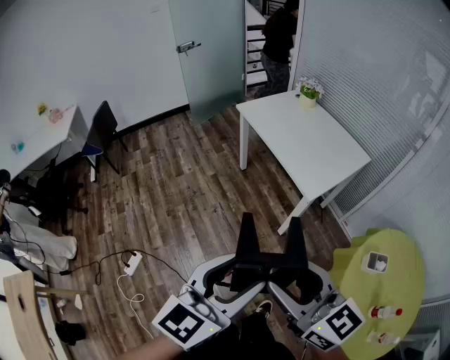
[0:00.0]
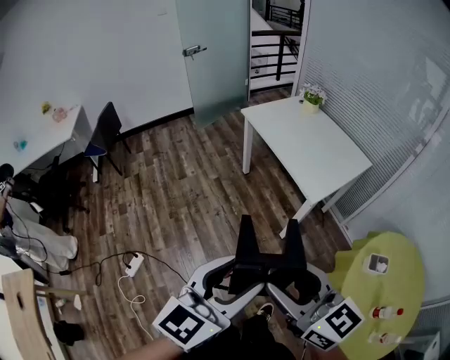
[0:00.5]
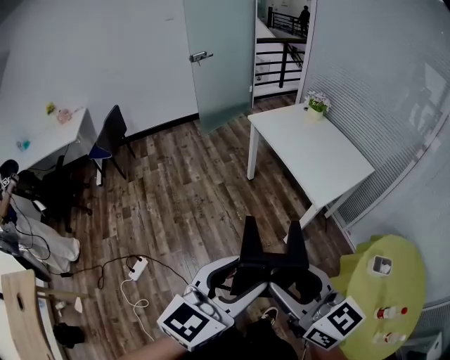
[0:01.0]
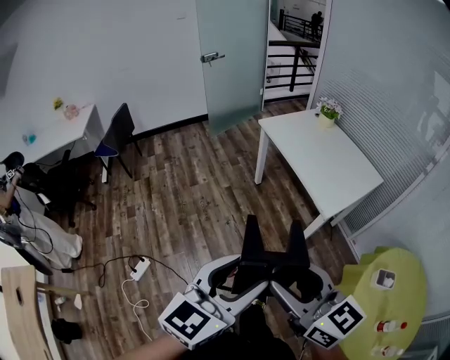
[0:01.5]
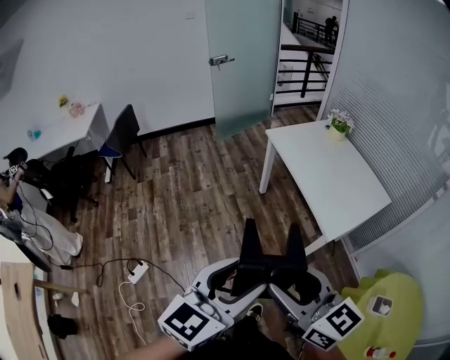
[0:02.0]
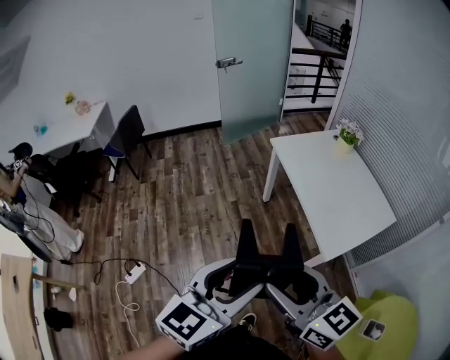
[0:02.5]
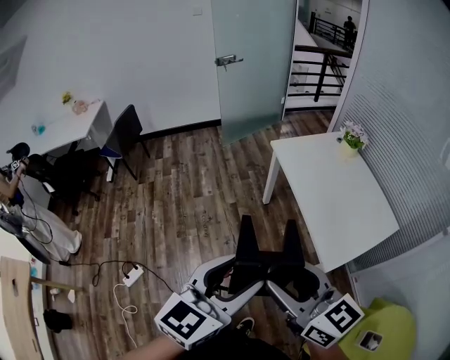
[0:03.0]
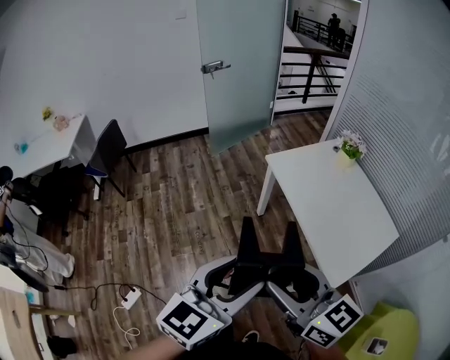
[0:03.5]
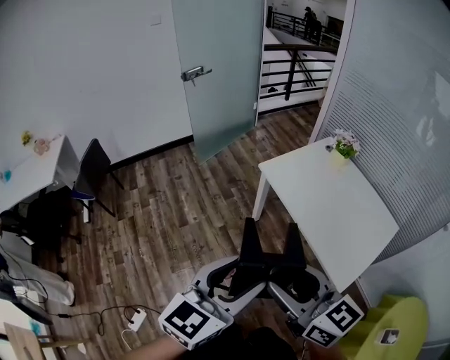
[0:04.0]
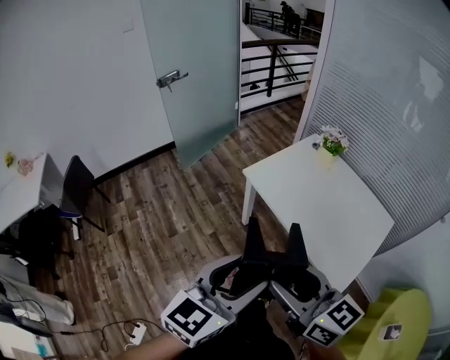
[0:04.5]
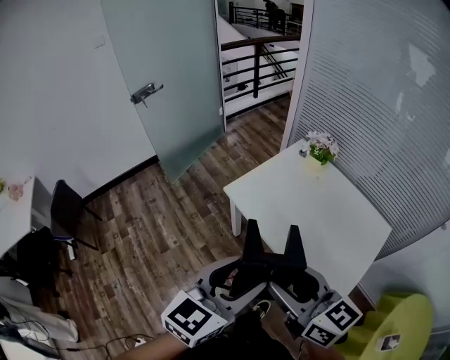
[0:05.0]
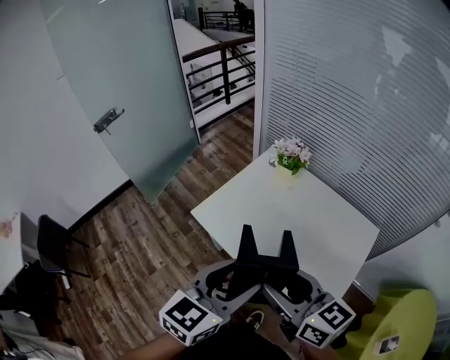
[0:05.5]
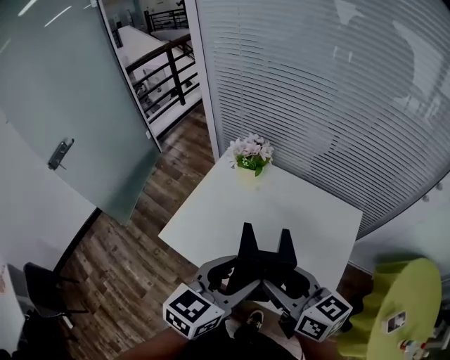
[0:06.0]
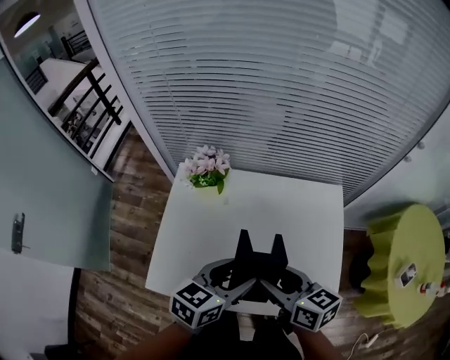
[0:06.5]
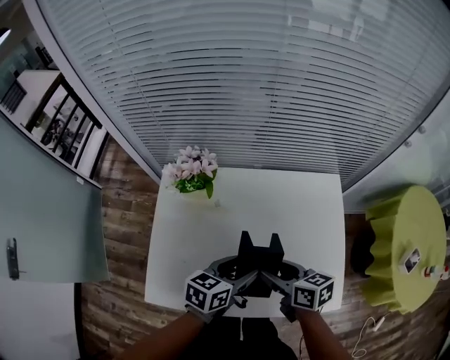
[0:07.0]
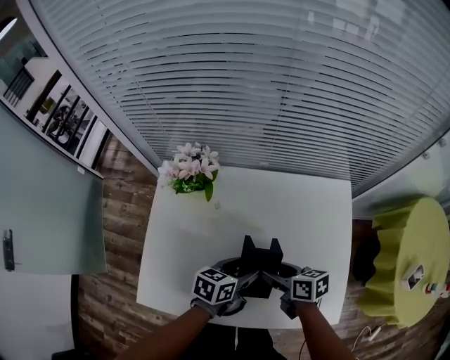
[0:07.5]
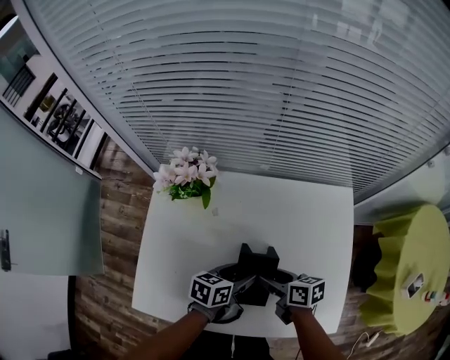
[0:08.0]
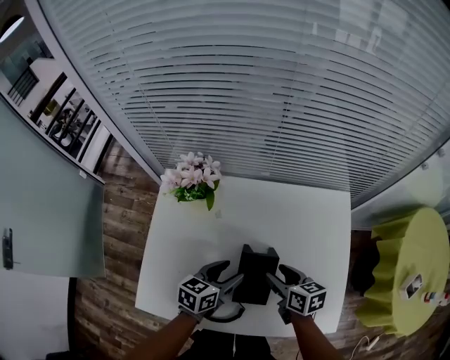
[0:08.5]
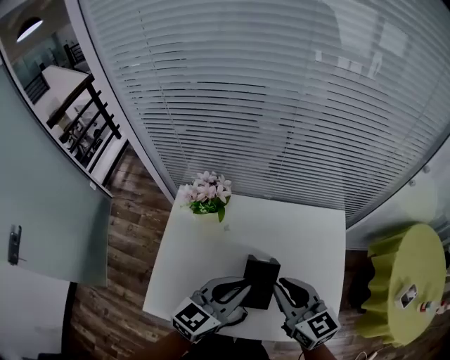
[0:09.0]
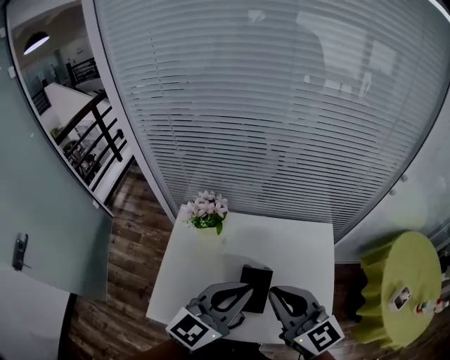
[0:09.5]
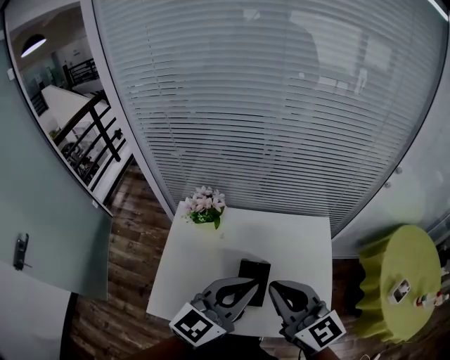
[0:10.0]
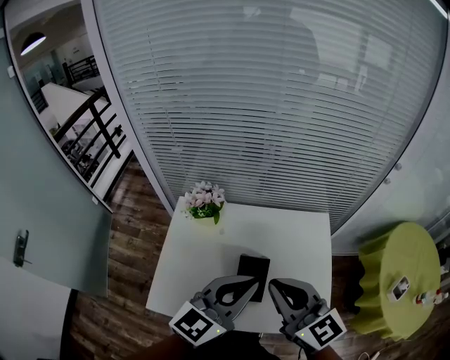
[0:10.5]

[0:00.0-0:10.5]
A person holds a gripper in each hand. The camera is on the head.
0:00.0 to 0:02.0: The grippers both shift forward and to the left by roughly 10 cm.
0:02.0 to 0:04.0: The two grippers go roughly 35 cm forward.
0:04.0 to 0:06.5: Both grippers are carried some 50 cm. The right gripper swivels about 60 degrees. The left gripper rotates some 60 degrees.
0:06.5 to 0:08.5: Both grippers travel together downward and forward, about 20 cm.
0:08.5 to 0:10.5: Both grippers move upward, some 35 cm. The right gripper tips its fingers upward by approximately 30 degrees, and closes its fingers. The left gripper turns by some 40 degrees, and closes its fingers.

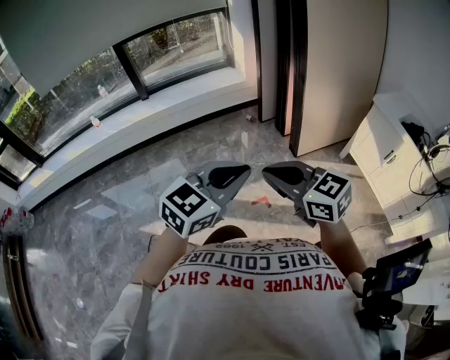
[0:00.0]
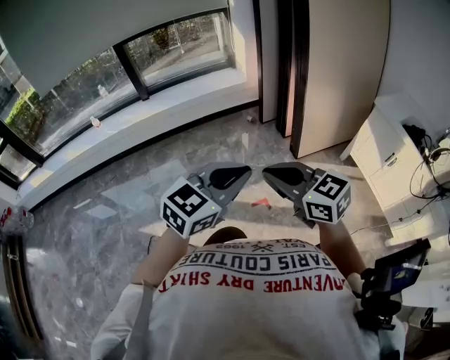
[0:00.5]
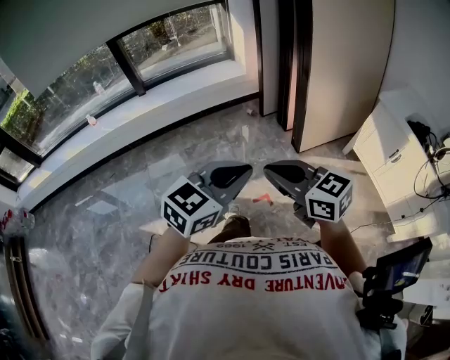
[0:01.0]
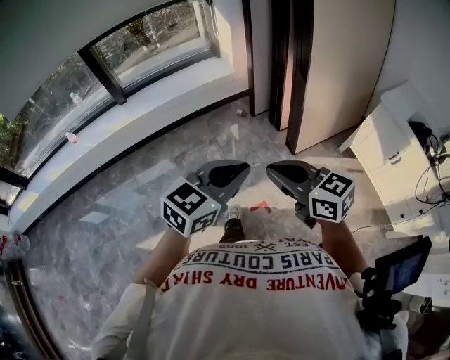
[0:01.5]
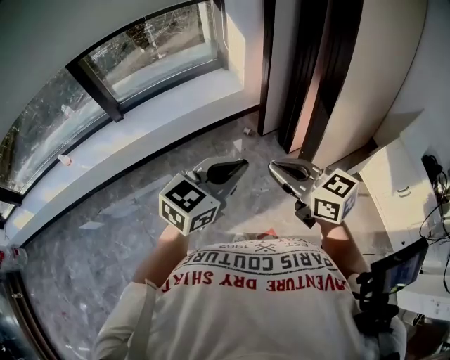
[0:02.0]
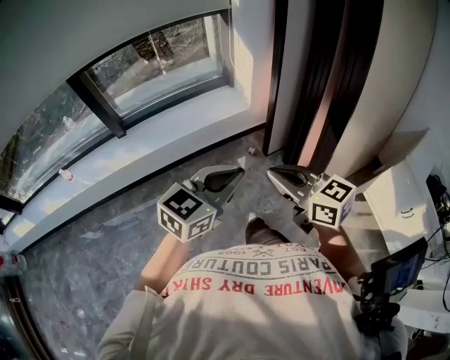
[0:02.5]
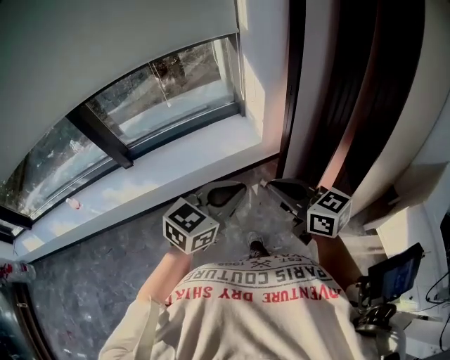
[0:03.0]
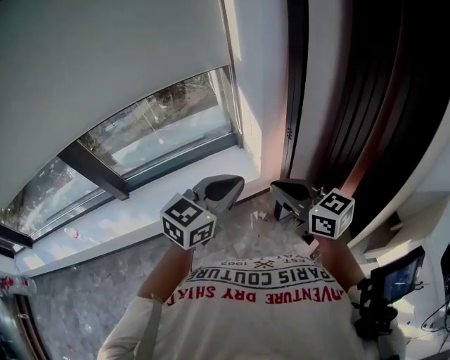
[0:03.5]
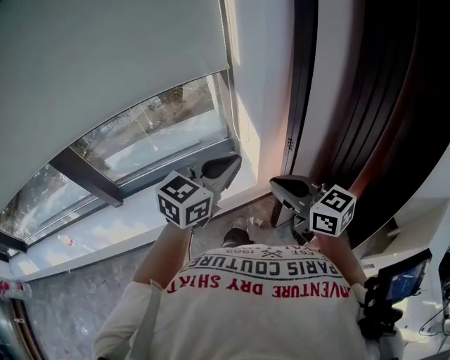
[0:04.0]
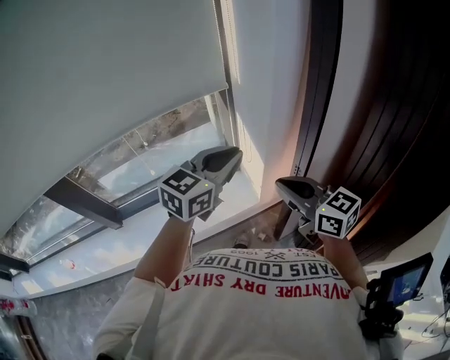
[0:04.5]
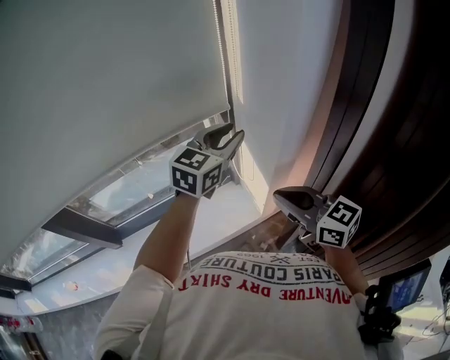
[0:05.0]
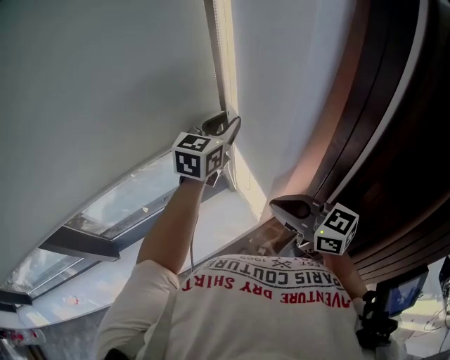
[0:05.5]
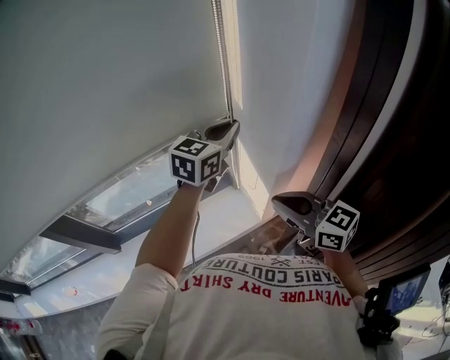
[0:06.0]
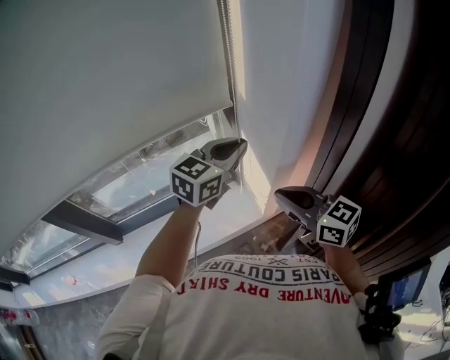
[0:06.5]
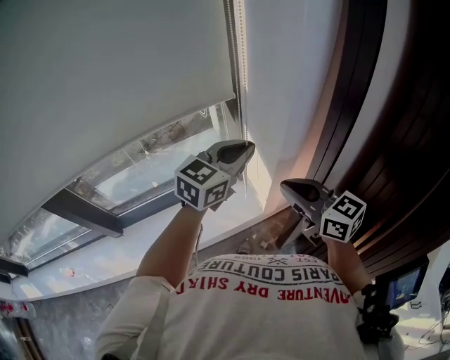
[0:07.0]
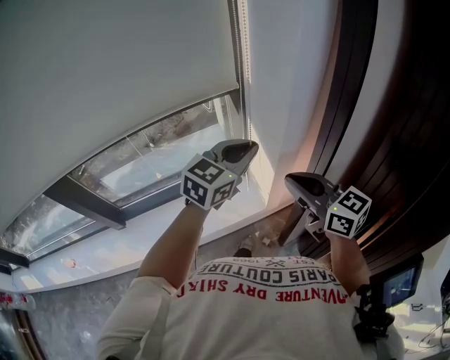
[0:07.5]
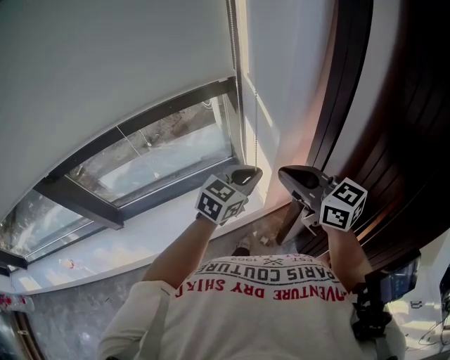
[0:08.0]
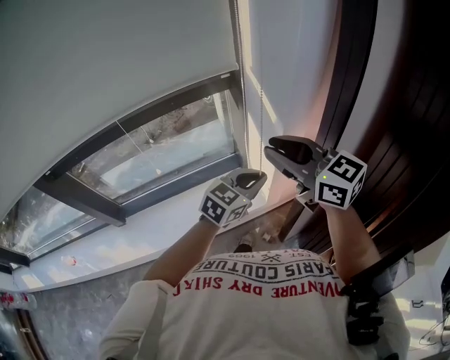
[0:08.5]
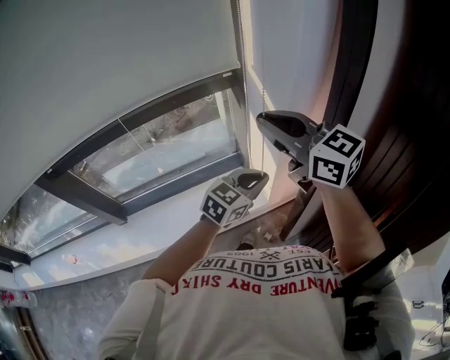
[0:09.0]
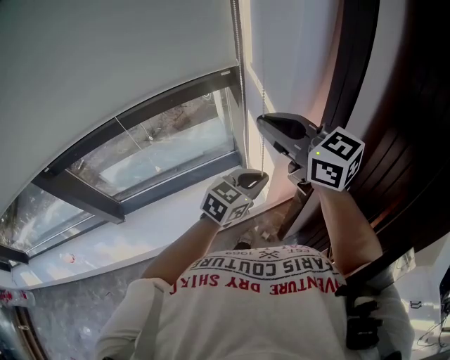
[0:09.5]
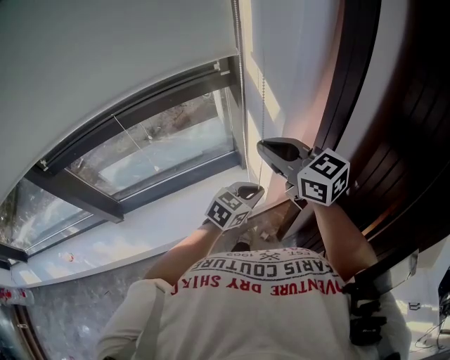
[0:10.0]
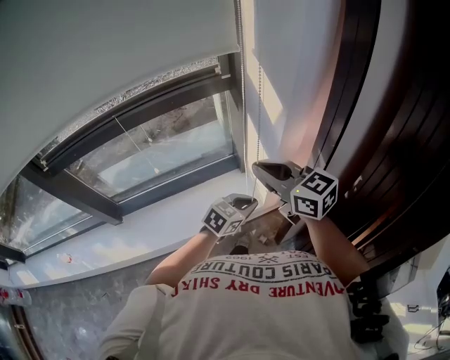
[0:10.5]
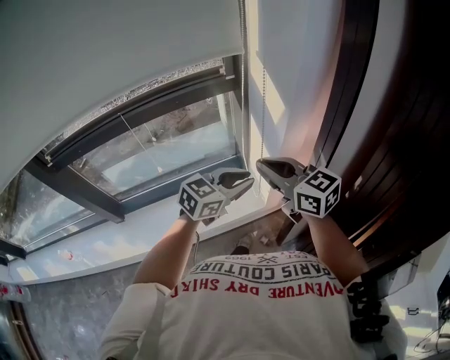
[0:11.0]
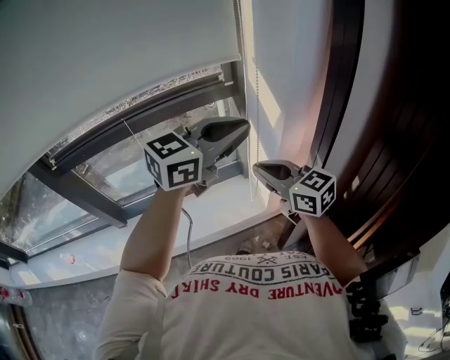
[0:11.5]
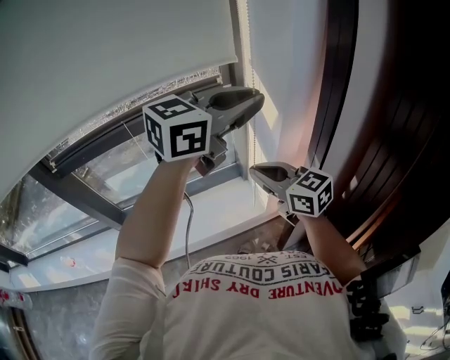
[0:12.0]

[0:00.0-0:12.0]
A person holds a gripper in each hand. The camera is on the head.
0:00.0 to 0:02.0: The grippers both shift forward by approximately 40 cm.
0:02.0 to 0:04.0: The pair of grippers is taken forward, approximately 50 cm.
0:04.0 to 0:06.0: The left gripper shifts some 30 cm forward, and opens, then closes again, while the right gripper heads forward, covering approximately 15 cm.
0:06.0 to 0:08.0: The left gripper is displaced backward and downward by approximately 20 cm.
0:08.0 to 0:10.0: The right gripper shifts some 5 cm to the left, and moves roughly 10 cm upward and comes back. The left gripper goes approximately 10 cm downward.
0:10.0 to 0:12.0: The left gripper shifts some 35 cm upward, and turns by some 30 degrees; the right gripper changes place by about 5 cm.

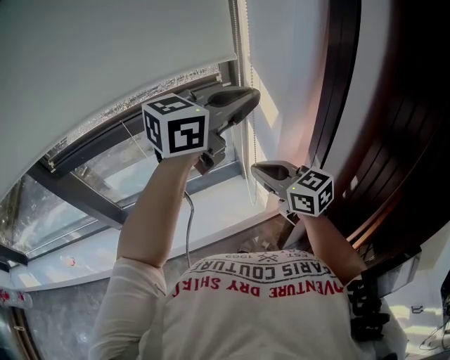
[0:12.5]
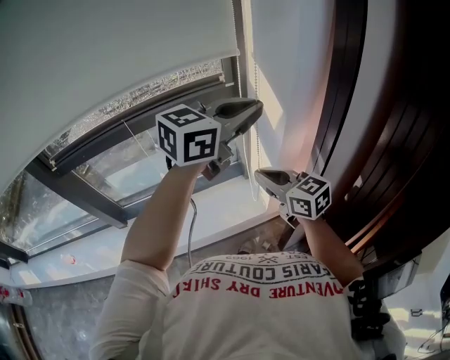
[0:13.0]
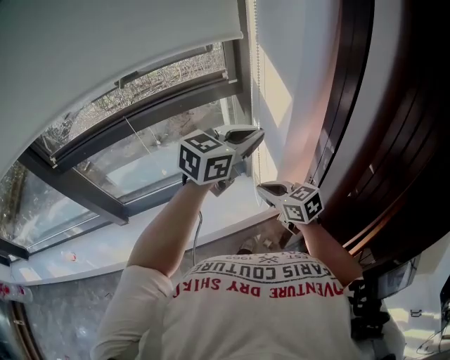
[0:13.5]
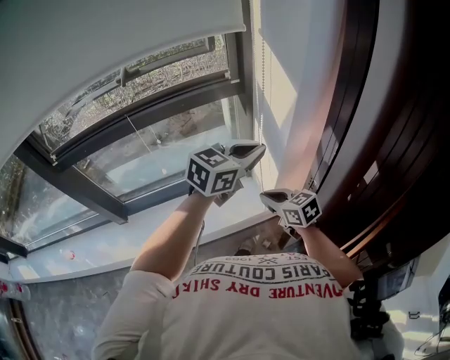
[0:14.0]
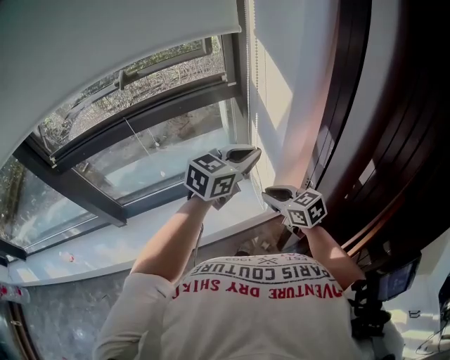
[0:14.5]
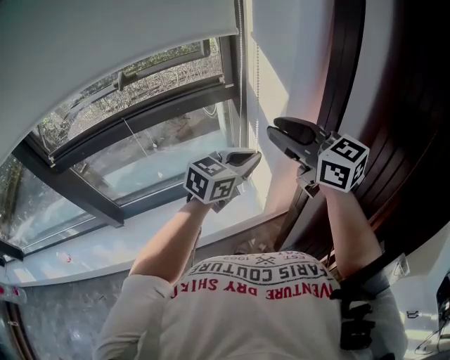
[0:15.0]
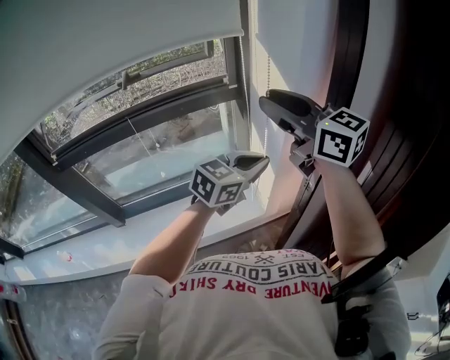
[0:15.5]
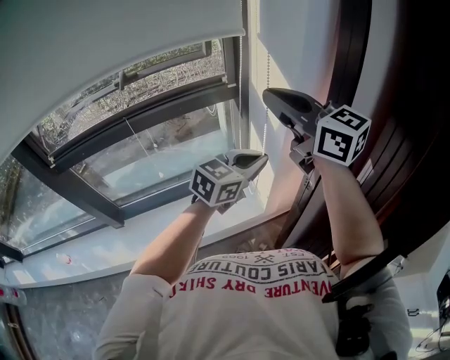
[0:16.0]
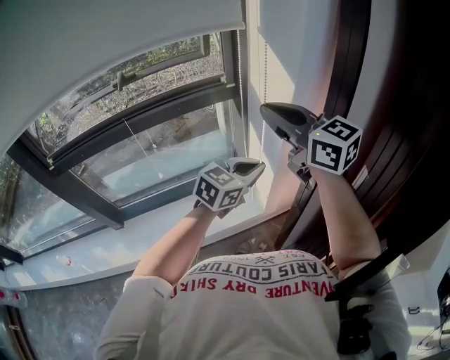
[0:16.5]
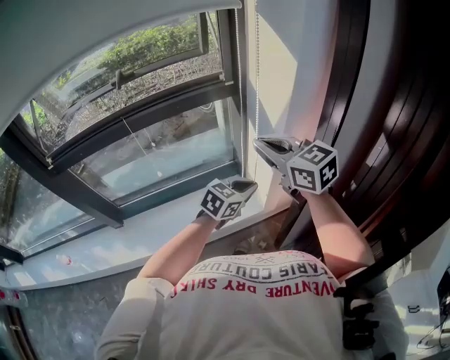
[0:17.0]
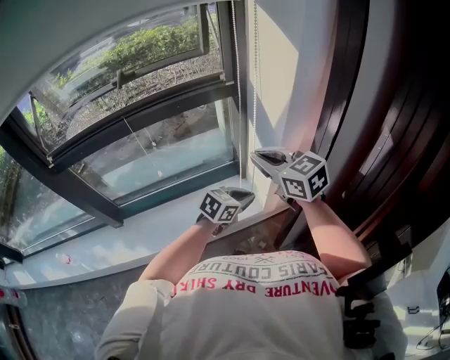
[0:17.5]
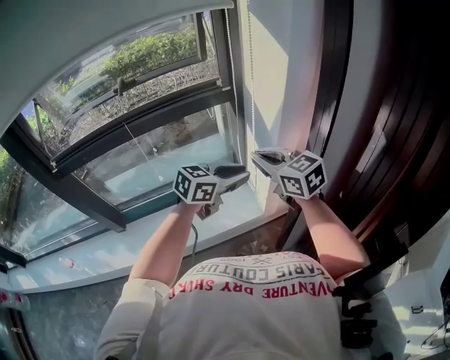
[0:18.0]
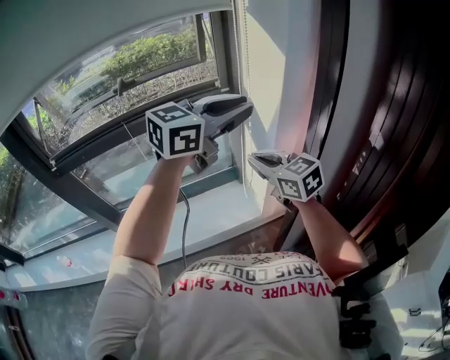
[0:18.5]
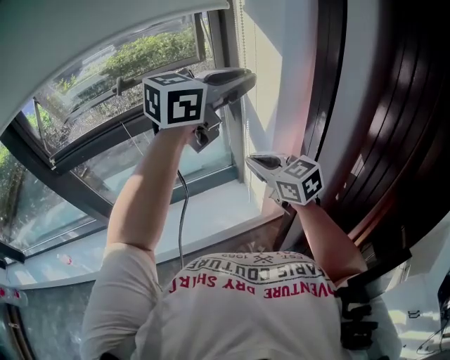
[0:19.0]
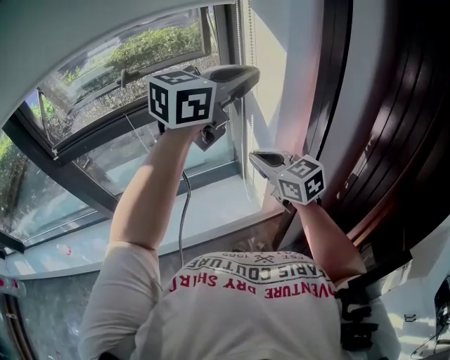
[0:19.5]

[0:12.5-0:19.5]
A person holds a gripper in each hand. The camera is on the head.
0:12.5 to 0:14.5: The two grippers go approximately 15 cm downward.
0:14.5 to 0:16.0: The right gripper moves upward, about 35 cm, and points its fingers about 30 degrees further upward.
0:16.0 to 0:17.5: The two grippers go approximately 20 cm downward. The right gripper turns by some 20 degrees. Meanwhile the left gripper changes its angle by some 20 degrees.
0:17.5 to 0:19.5: The left gripper moves upward, some 40 cm, turns by approximately 40 degrees, and opens, then closes again.
